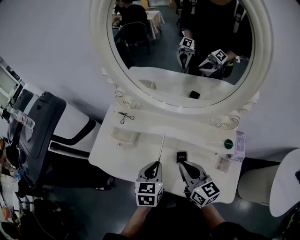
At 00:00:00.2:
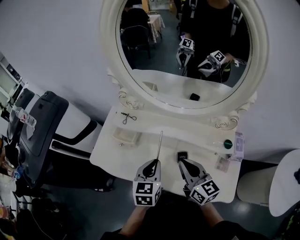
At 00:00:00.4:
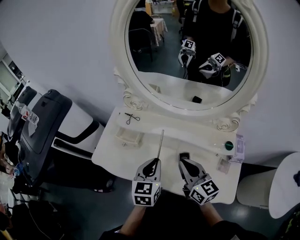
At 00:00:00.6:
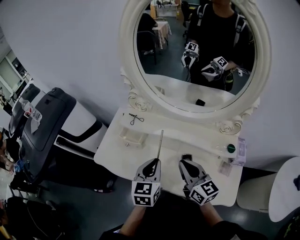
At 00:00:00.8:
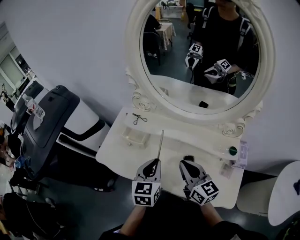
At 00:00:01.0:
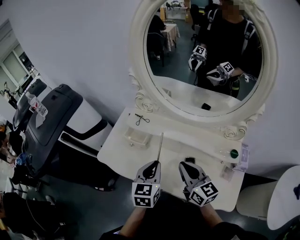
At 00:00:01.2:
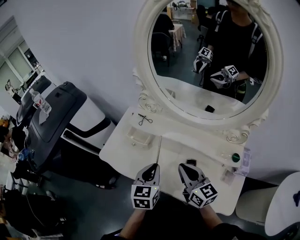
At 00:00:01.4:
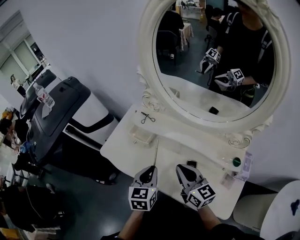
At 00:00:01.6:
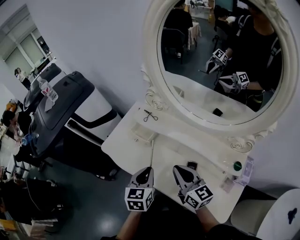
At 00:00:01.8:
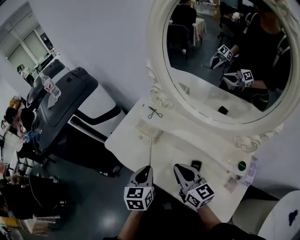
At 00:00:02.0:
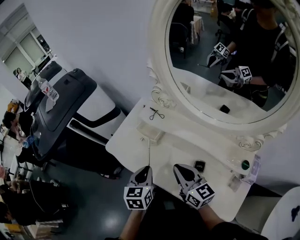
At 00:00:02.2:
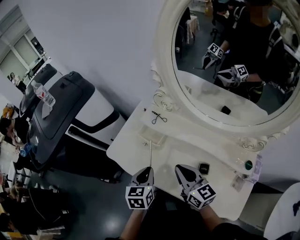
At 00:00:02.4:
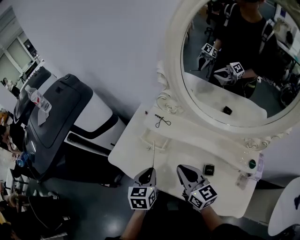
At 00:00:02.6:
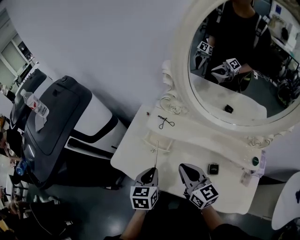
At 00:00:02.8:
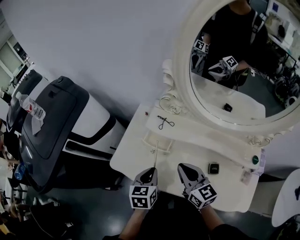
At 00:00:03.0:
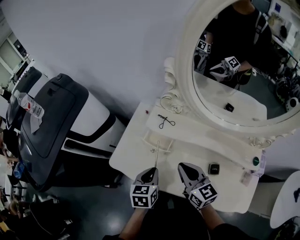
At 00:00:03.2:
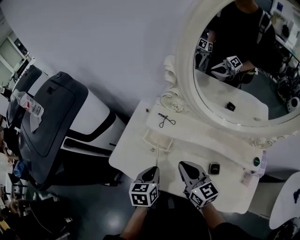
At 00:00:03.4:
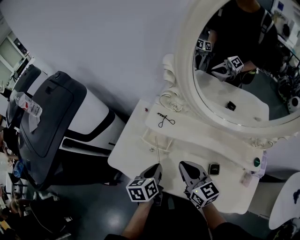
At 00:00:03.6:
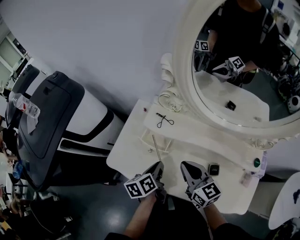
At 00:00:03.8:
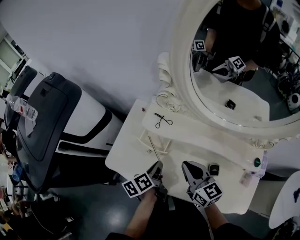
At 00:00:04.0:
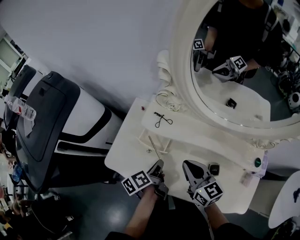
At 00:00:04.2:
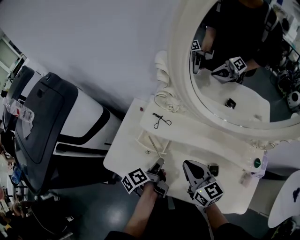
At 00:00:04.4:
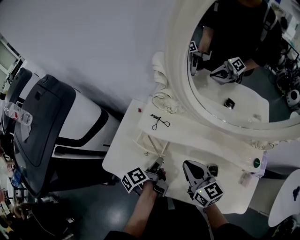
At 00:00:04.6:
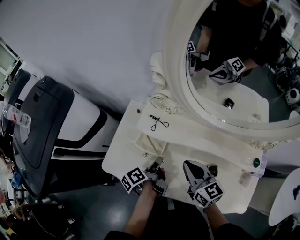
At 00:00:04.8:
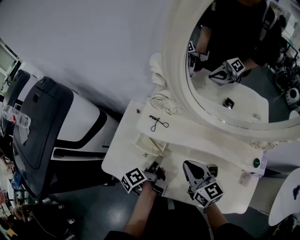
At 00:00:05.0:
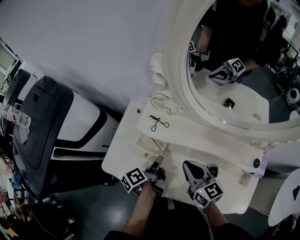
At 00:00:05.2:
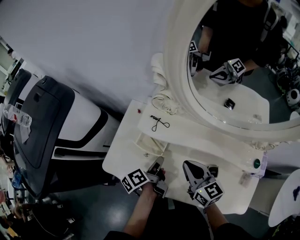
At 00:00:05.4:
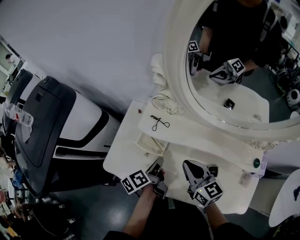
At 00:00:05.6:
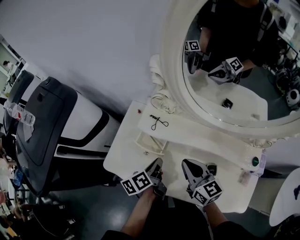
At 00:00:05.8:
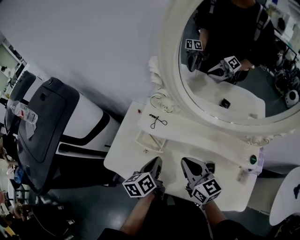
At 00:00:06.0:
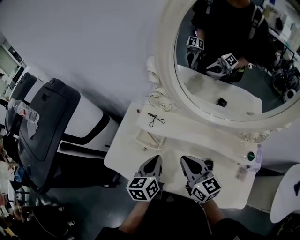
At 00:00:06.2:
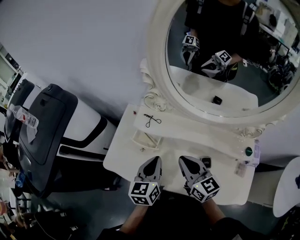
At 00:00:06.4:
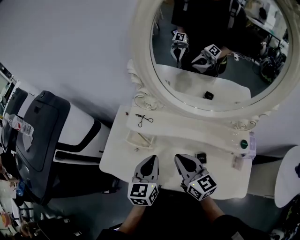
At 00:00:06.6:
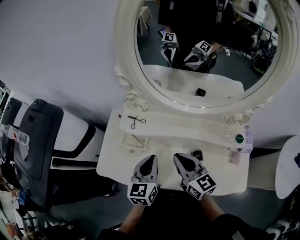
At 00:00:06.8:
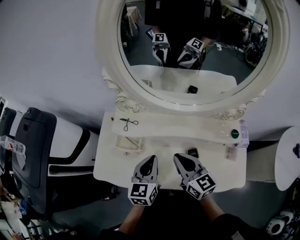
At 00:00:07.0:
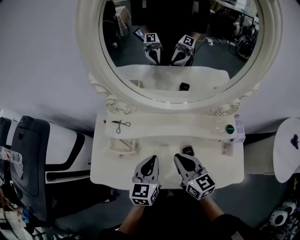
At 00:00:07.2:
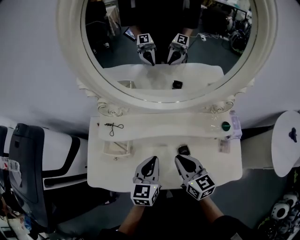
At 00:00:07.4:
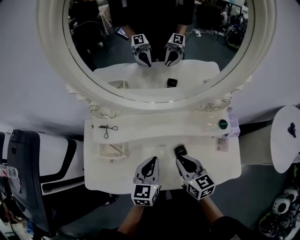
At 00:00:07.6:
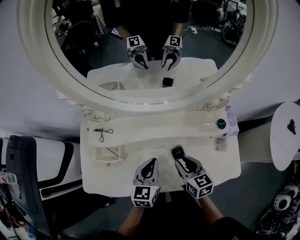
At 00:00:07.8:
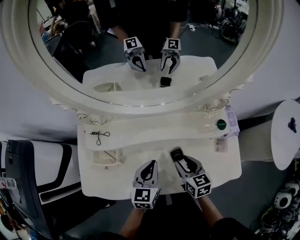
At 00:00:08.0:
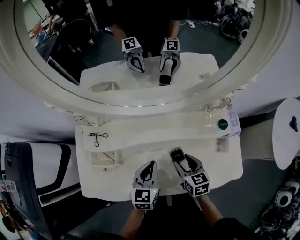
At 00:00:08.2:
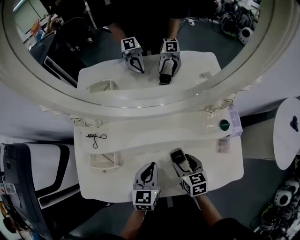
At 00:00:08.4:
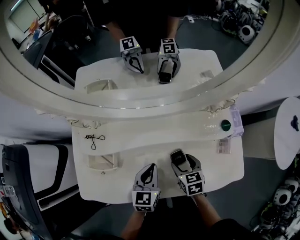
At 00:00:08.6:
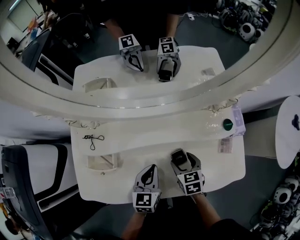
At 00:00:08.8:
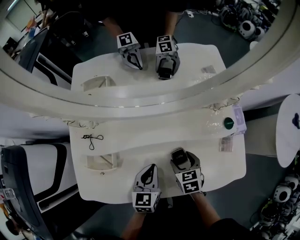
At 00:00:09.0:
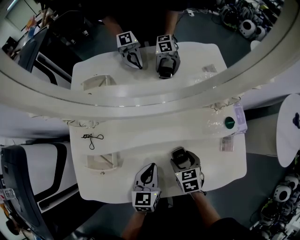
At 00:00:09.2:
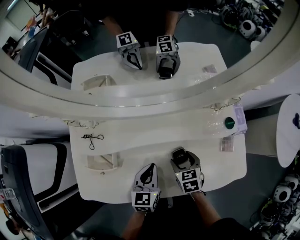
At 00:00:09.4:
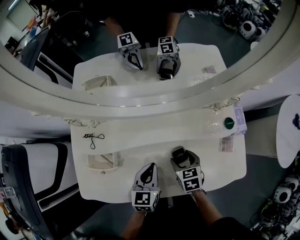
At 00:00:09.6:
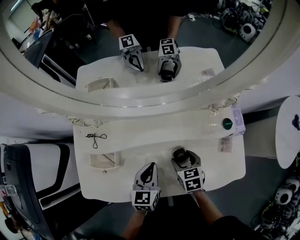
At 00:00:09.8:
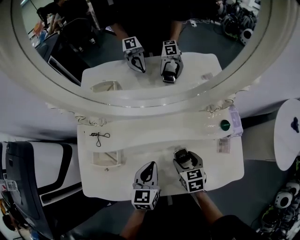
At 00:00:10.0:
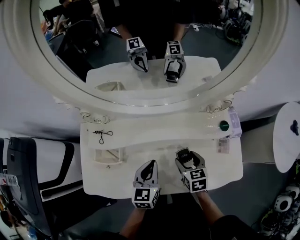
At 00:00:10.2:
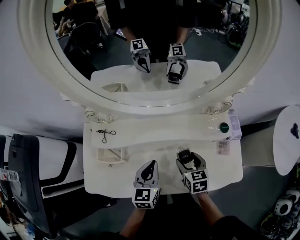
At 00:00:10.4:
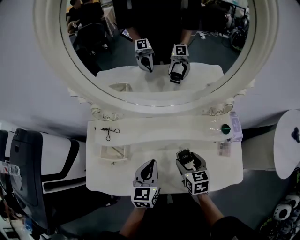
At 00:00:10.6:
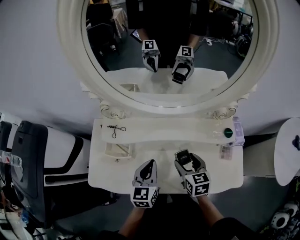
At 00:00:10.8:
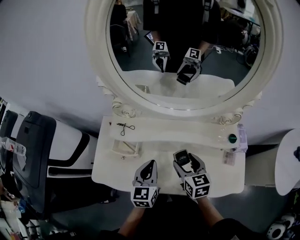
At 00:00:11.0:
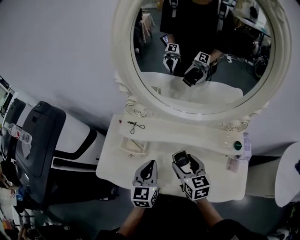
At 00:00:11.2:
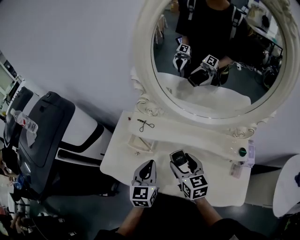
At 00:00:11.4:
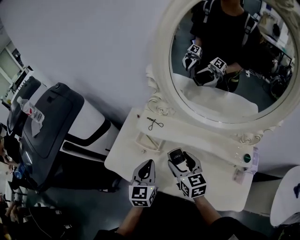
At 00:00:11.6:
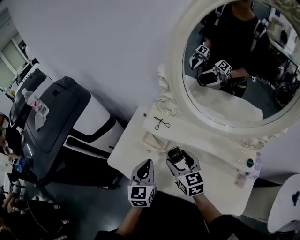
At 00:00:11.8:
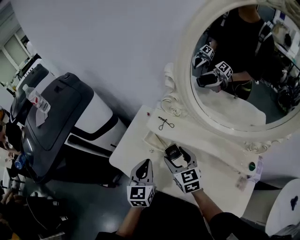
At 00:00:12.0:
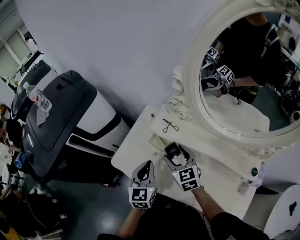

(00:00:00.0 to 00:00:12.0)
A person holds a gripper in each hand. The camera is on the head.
00:00:00.0 - 00:00:01.6: The grippers both shift to the left by roughly 10 cm.
00:00:01.6 - 00:00:03.0: The left gripper moves forward, to the left and downward, roughly 15 cm, while the right gripper moves forward and to the left, about 15 cm.
00:00:03.0 - 00:00:04.4: The left gripper shifts some 10 cm forward and to the right, and twists roughly 70 degrees counterclockwise, seen from behind; the right gripper changes place by roughly 5 cm.
00:00:04.4 - 00:00:06.0: The left gripper is displaced upward by about 10 cm, and rotates around the line of its fingers by approximately 60 degrees, clockwise from behind; the right gripper shifts by some 5 cm.
00:00:06.0 - 00:00:07.6: The left gripper shifts about 15 cm to the right, and rotates roughly 40 degrees; the right gripper shifts roughly 20 cm to the right and downward, and swivels about 30 degrees.
00:00:07.6 - 00:00:09.0: The right gripper shifts roughly 10 cm downward, rotates some 30 degrees, and opens, while the left gripper goes some 10 cm downward.
00:00:09.0 - 00:00:10.4: The two grippers go approximately 10 cm upward.
00:00:10.4 - 00:00:12.0: The left gripper ends up approximately 25 cm from where it was, and changes its angle by some 30 degrees, while the right gripper moves about 30 cm, and rotates some 50 degrees.

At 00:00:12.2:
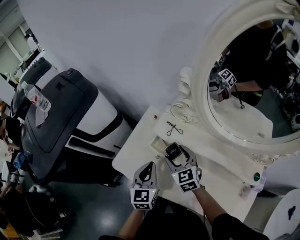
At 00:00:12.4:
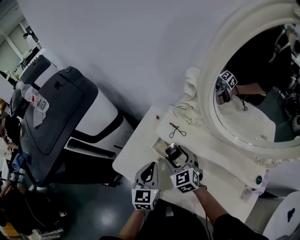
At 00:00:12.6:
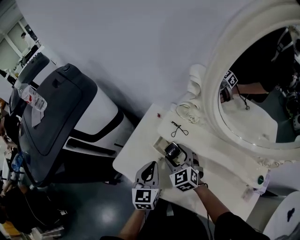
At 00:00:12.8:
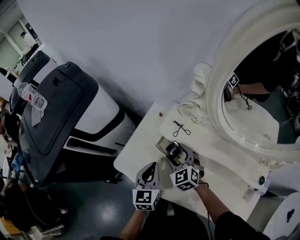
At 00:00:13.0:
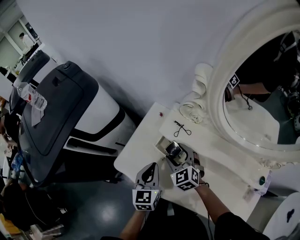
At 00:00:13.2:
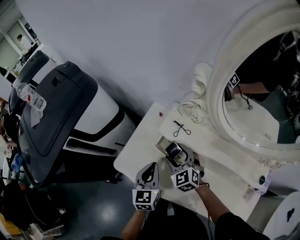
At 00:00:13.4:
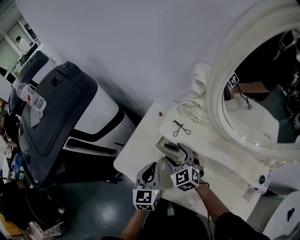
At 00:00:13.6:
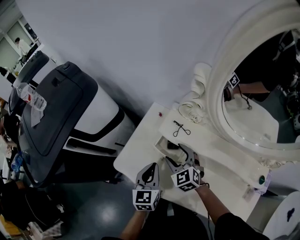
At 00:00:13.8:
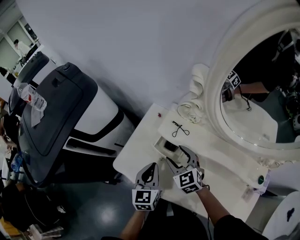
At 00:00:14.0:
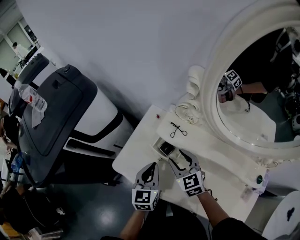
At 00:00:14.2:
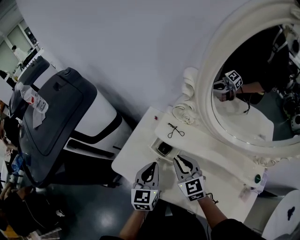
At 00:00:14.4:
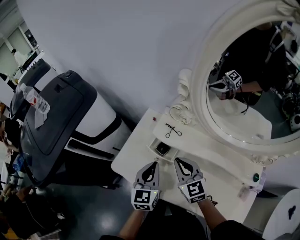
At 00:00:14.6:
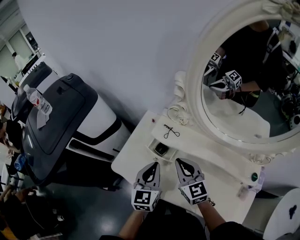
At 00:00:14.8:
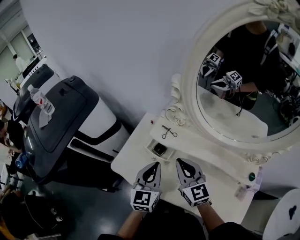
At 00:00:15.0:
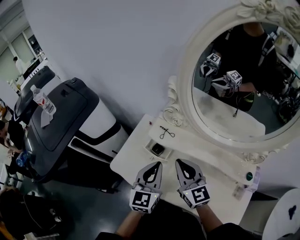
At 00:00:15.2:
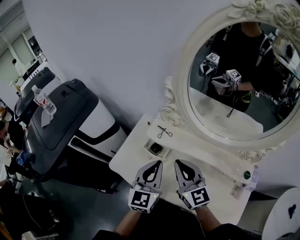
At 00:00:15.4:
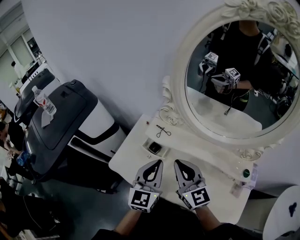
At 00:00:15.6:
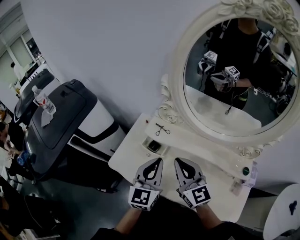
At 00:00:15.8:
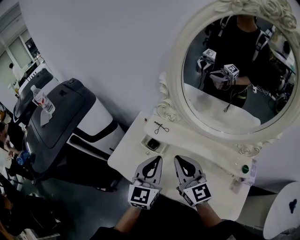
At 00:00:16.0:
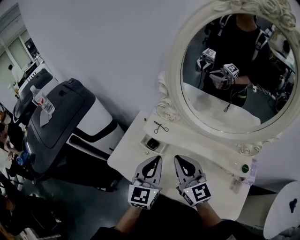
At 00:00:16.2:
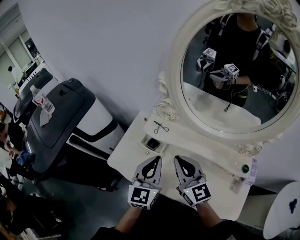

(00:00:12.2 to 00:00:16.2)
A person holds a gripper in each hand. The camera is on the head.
00:00:12.2 - 00:00:13.6: The right gripper shifts by about 5 cm.
00:00:13.6 - 00:00:14.8: The right gripper heads upward, backward and to the right, covering some 20 cm, turns by some 30 degrees, and closes up. The left gripper is displaced upward and to the right by approximately 10 cm.
00:00:14.8 - 00:00:16.2: The left gripper heads upward, covering roughly 5 cm. Meanwhile the right gripper heads upward and backward, covering about 10 cm.

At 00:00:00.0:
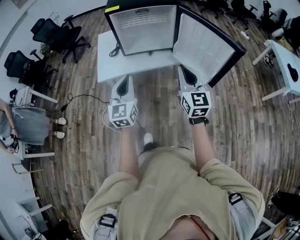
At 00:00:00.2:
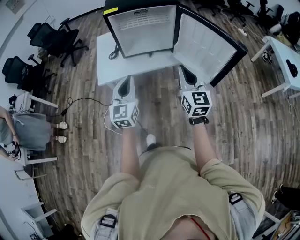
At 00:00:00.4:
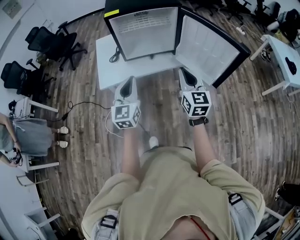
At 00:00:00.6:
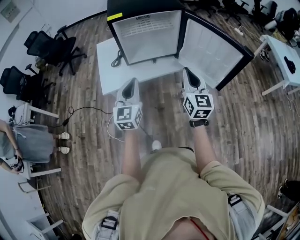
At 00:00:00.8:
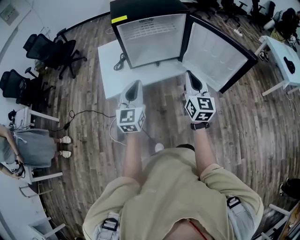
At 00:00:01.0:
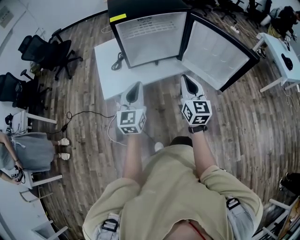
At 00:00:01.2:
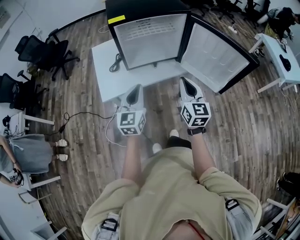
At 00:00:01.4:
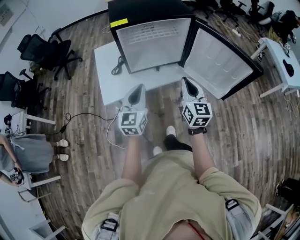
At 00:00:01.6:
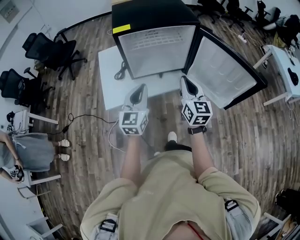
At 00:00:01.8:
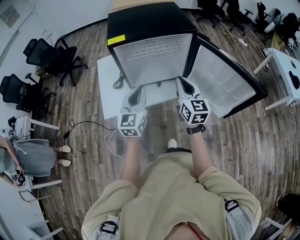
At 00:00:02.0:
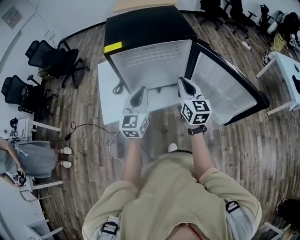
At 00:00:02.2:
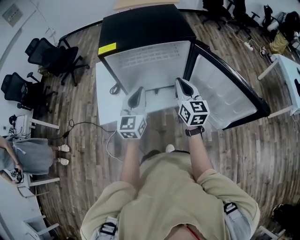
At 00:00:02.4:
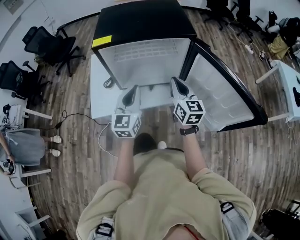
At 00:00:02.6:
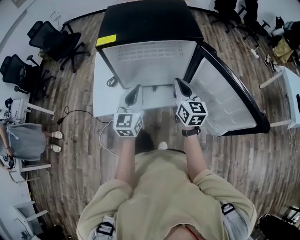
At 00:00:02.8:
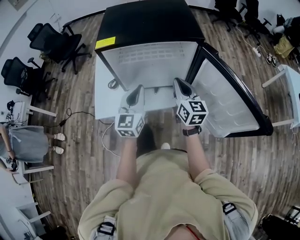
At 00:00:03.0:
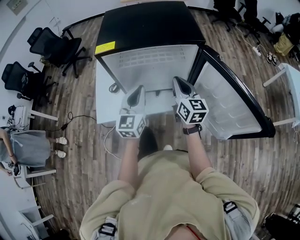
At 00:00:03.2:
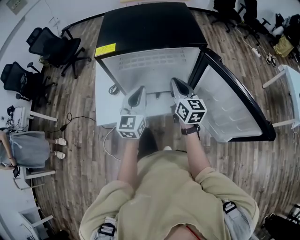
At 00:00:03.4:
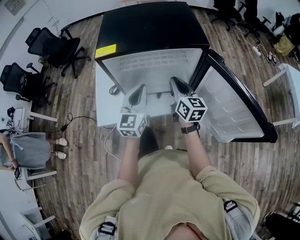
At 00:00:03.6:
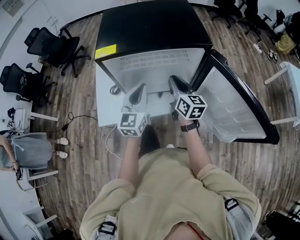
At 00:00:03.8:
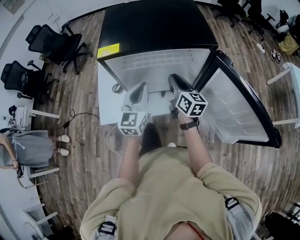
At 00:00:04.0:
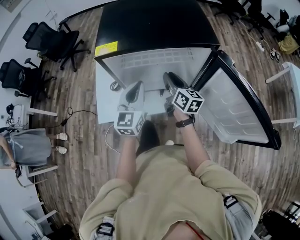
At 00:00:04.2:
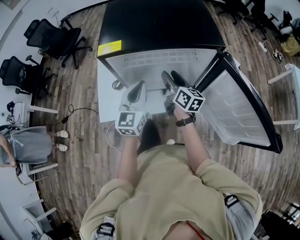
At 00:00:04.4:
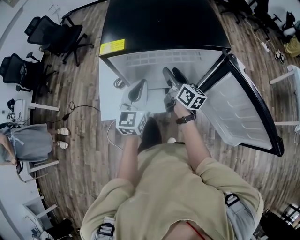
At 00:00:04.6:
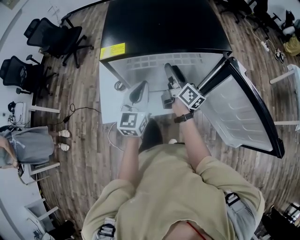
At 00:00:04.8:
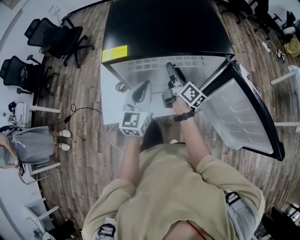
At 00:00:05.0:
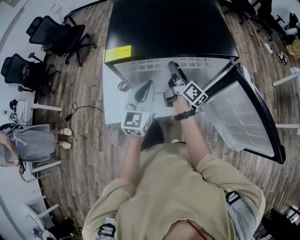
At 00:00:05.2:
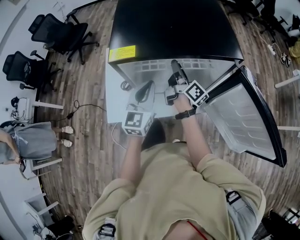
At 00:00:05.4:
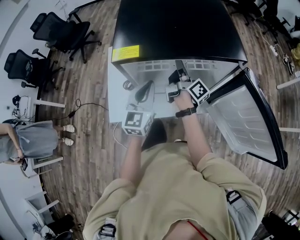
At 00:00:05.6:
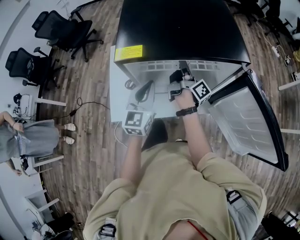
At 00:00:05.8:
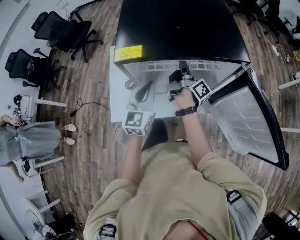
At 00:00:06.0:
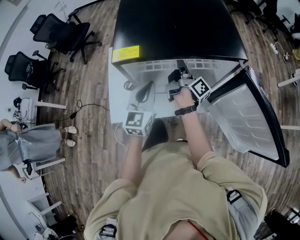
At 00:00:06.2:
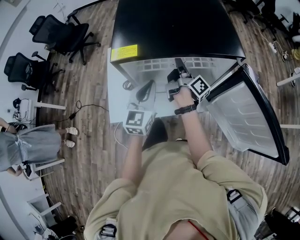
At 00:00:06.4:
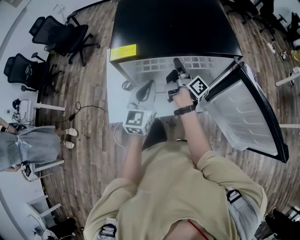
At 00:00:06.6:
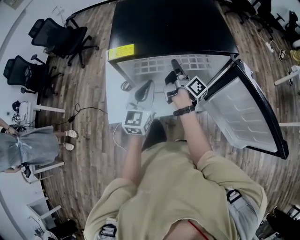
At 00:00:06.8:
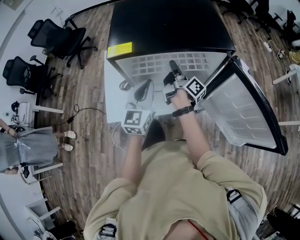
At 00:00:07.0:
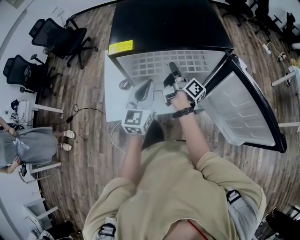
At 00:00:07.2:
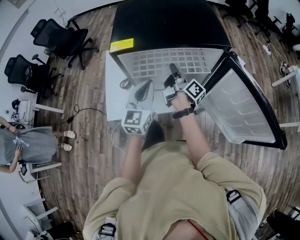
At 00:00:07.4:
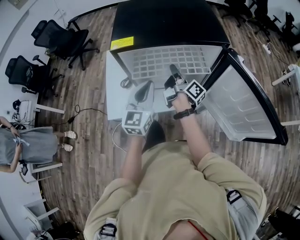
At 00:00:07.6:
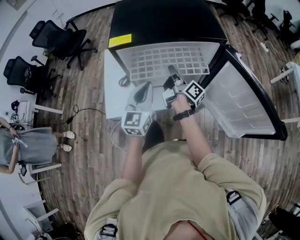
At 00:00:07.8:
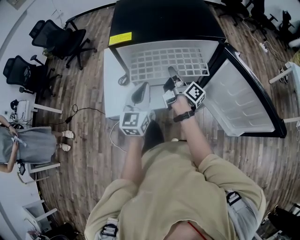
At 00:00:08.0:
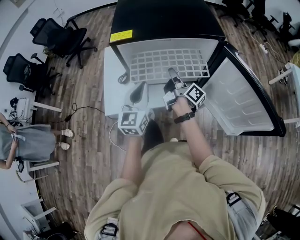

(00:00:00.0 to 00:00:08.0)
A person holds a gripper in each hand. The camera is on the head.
00:00:00.0 - 00:00:01.6: The right gripper is displaced forward and to the left by about 20 cm; the left gripper travels forward by some 15 cm.
00:00:01.6 - 00:00:03.2: The grippers both shift forward by some 20 cm.
00:00:03.2 - 00:00:04.8: The right gripper shifts approximately 15 cm forward and to the left, rotates approximately 40 degrees, and opens its fingers. Meanwhile the left gripper moves forward, about 5 cm.
00:00:04.8 - 00:00:06.4: The right gripper turns by approximately 30 degrees, and closes up.
00:00:06.4 - 00:00:08.0: The grippers both shift backward by roughly 10 cm.
